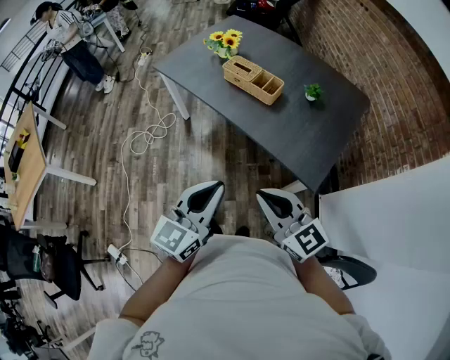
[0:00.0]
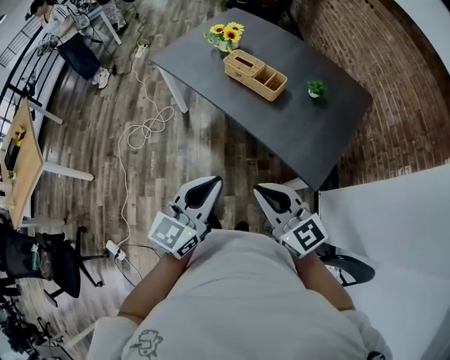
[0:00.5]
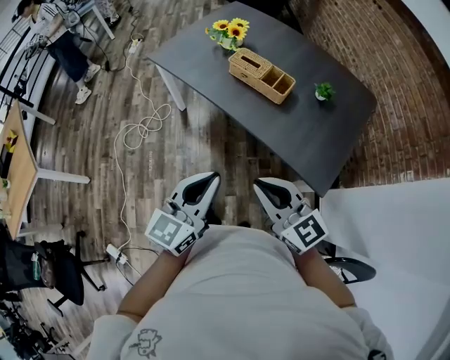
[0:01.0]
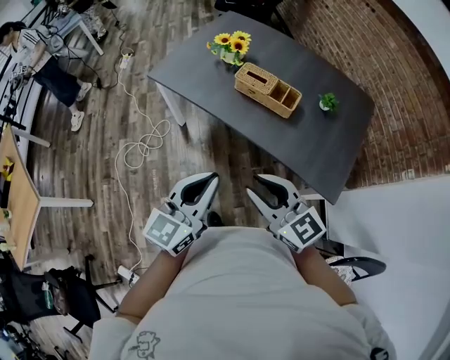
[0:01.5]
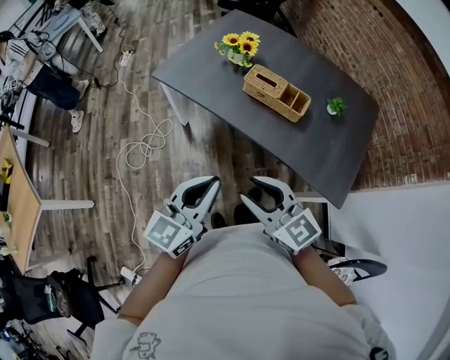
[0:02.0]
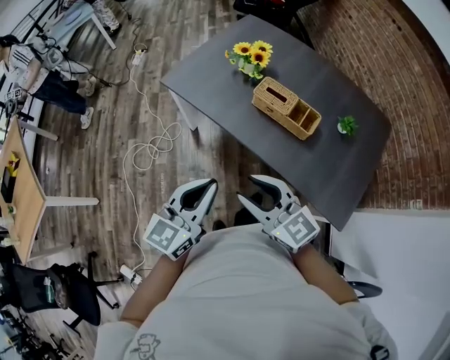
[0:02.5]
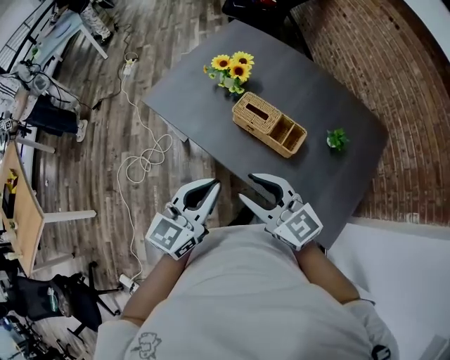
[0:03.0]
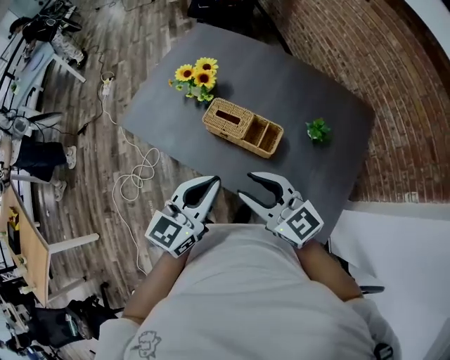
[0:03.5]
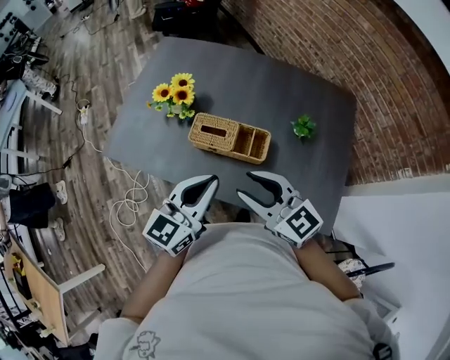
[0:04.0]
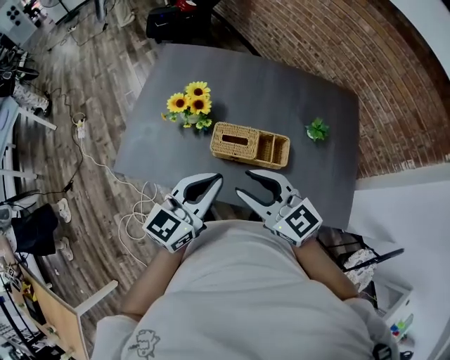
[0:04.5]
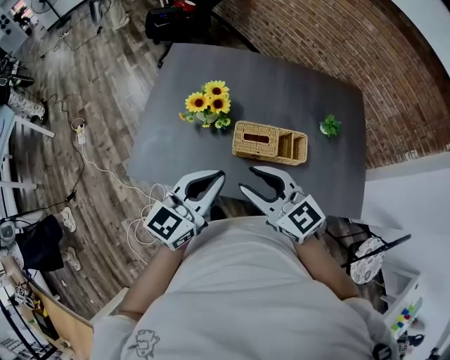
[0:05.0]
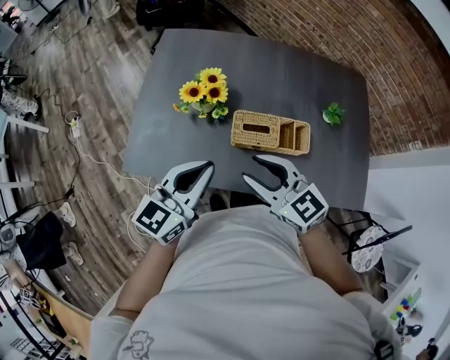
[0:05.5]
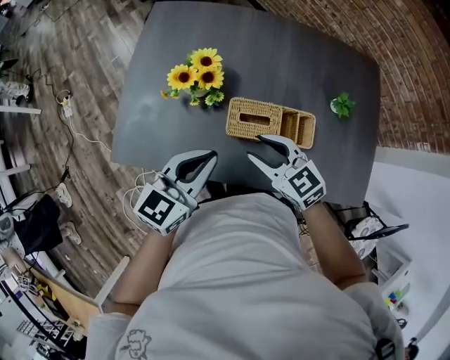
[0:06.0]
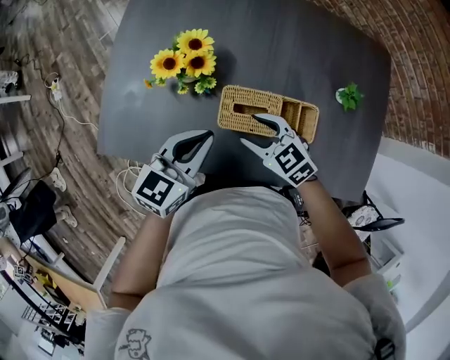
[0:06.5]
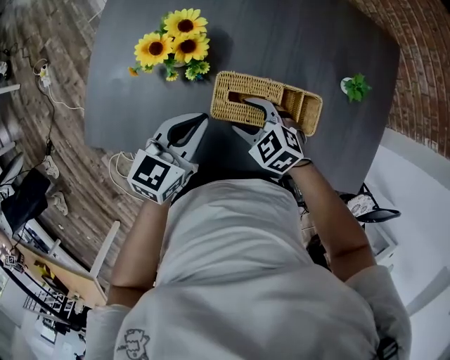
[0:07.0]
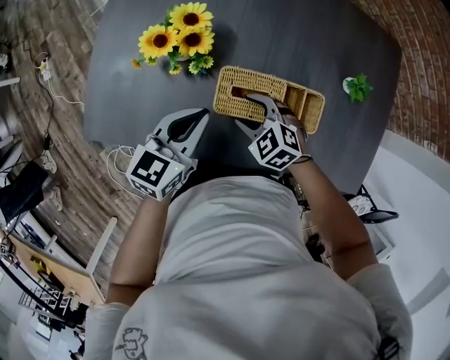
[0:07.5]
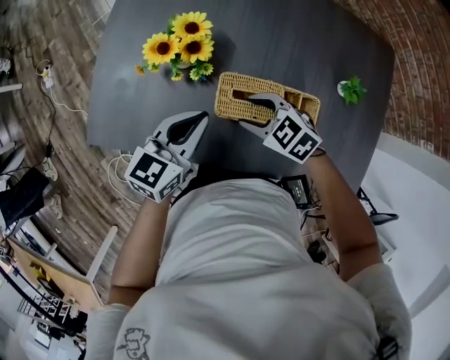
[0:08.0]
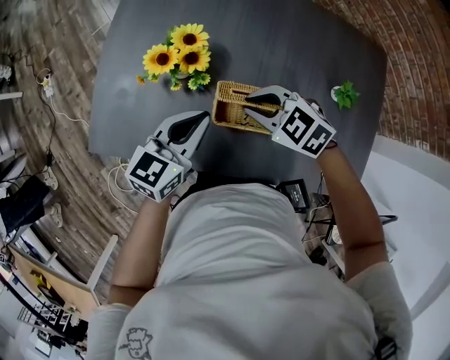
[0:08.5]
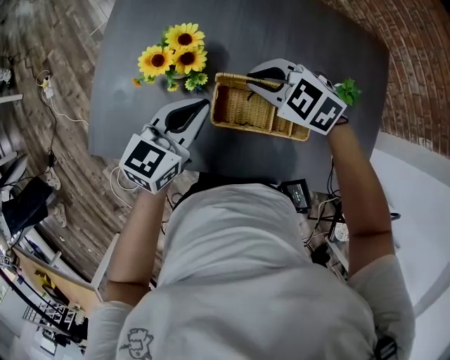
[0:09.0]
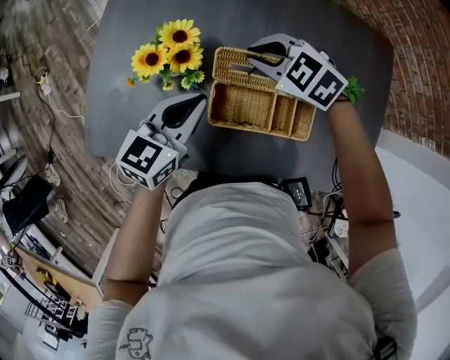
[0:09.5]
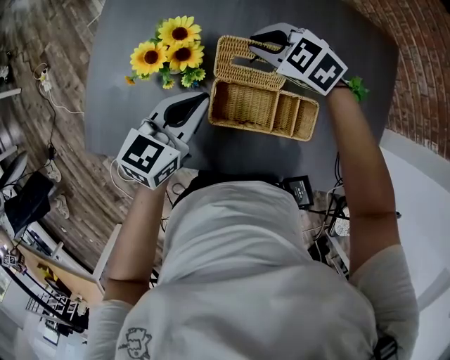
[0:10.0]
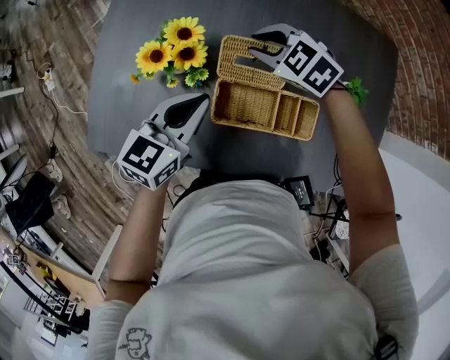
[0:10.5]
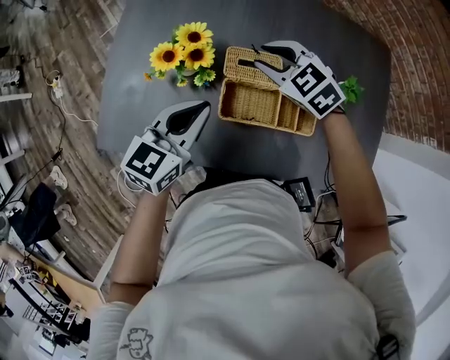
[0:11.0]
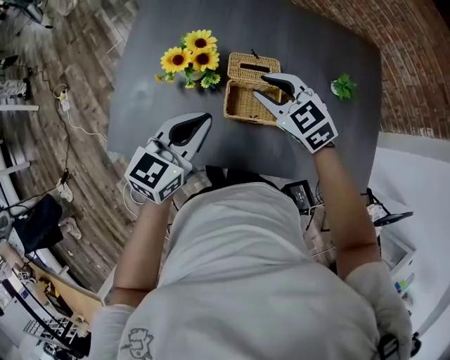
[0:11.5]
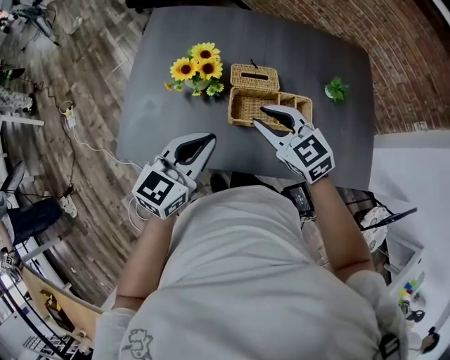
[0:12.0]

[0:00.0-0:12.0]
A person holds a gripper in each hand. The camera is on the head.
0:00.0 to 0:02.0: The right gripper travels to the left and forward by some 30 cm, and opens; the left gripper is displaced forward and to the left by about 25 cm.
0:02.0 to 0:04.0: The grippers both shift forward and to the right by approximately 30 cm.
0:04.0 to 0:06.0: The left gripper moves to the left, forward and downward, approximately 20 cm. The right gripper goes some 25 cm forward, to the left and downward, and rotates roughly 20 degrees.
0:06.0 to 0:08.0: The right gripper heads downward, covering about 10 cm, and swivels some 30 degrees, while the left gripper shifts roughly 10 cm downward and forward.
0:08.0 to 0:10.0: The left gripper heads forward, covering some 5 cm, while the right gripper shifts some 20 cm forward, and closes up.
0:10.0 to 0:12.0: The two grippers go some 20 cm backward and upward. The right gripper swivels approximately 30 degrees.

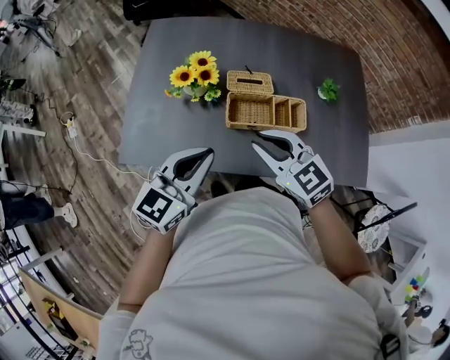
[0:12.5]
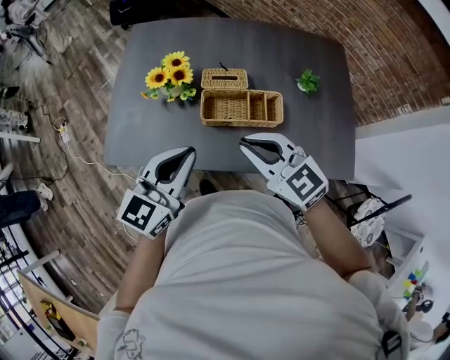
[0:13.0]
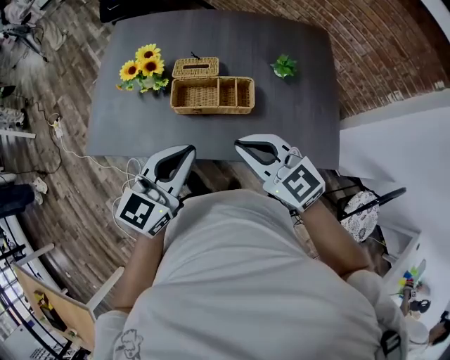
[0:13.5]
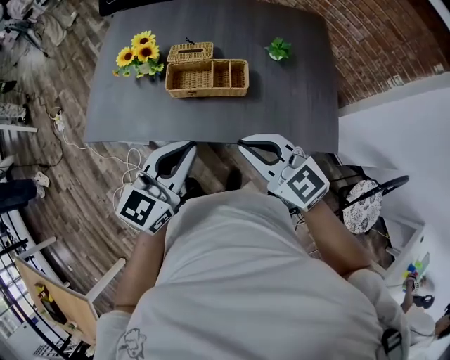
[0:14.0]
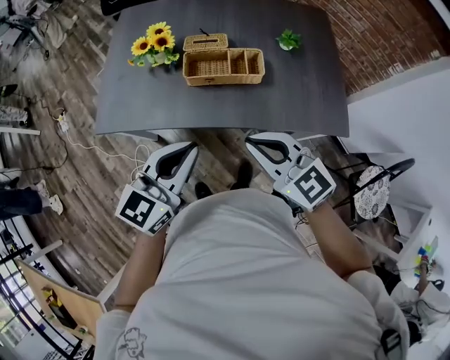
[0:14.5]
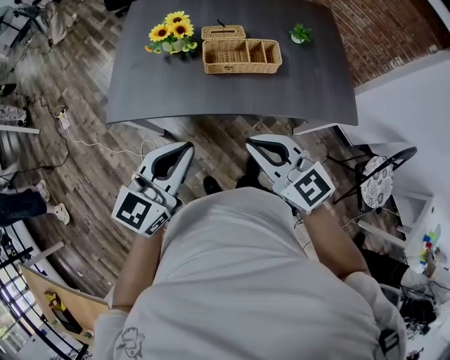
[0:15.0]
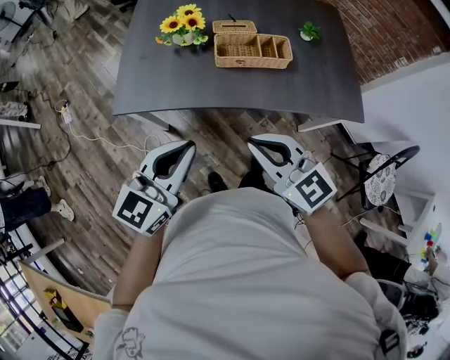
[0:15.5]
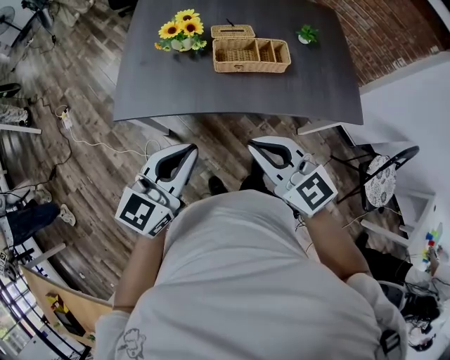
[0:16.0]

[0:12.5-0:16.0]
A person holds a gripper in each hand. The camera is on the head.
0:12.5 to 0:14.5: The two grippers go some 20 cm backward and to the right.
0:14.5 to 0:16.0: The left gripper heads to the left, covering about 15 cm. The right gripper goes about 15 cm to the left and backward.

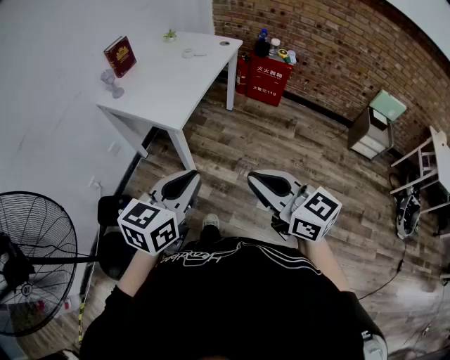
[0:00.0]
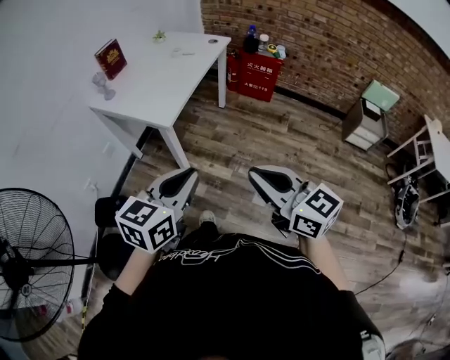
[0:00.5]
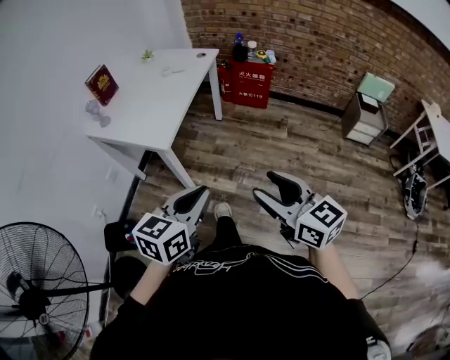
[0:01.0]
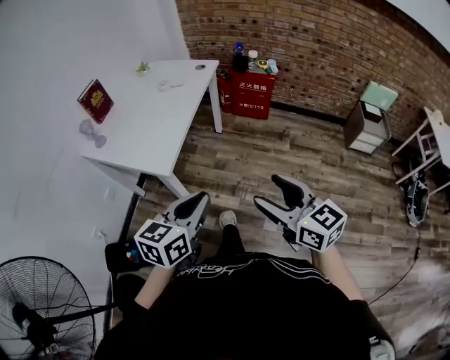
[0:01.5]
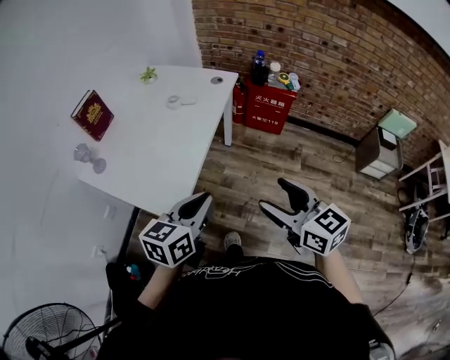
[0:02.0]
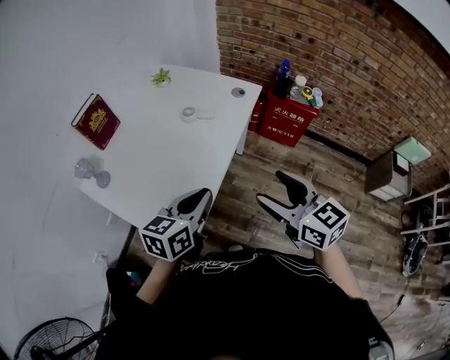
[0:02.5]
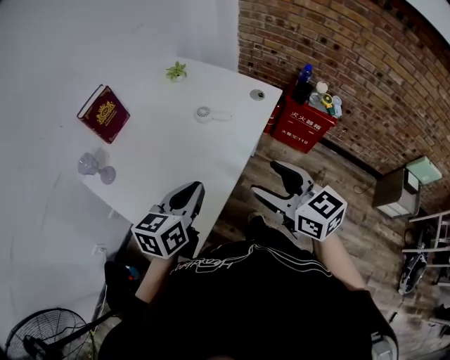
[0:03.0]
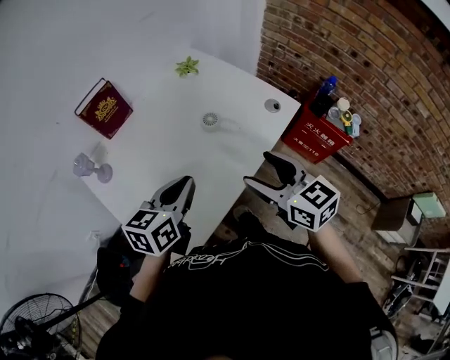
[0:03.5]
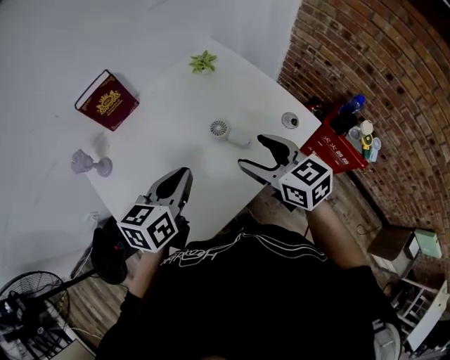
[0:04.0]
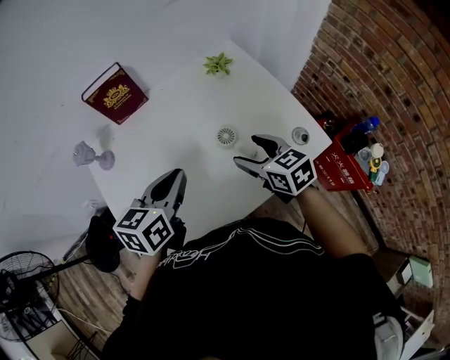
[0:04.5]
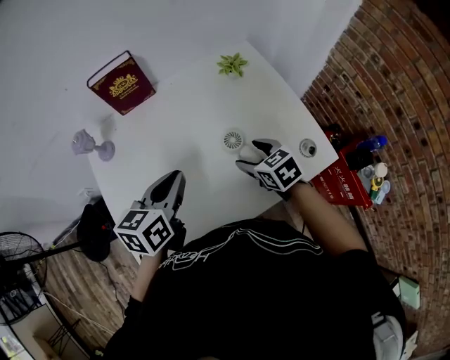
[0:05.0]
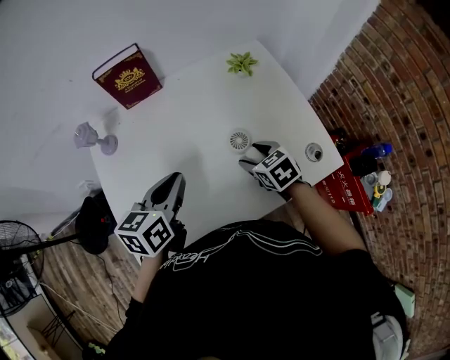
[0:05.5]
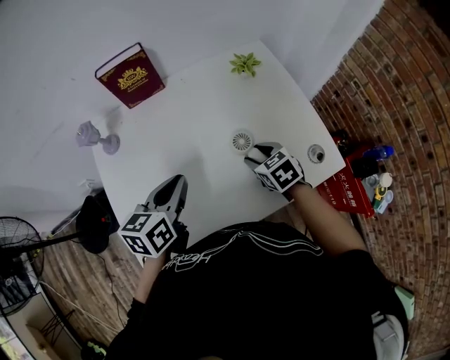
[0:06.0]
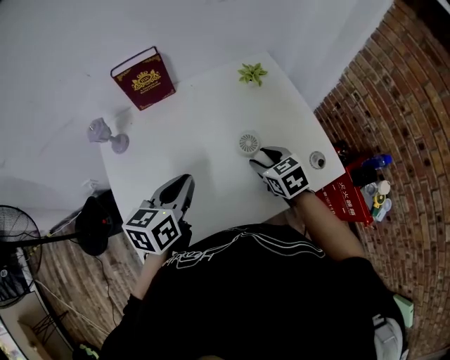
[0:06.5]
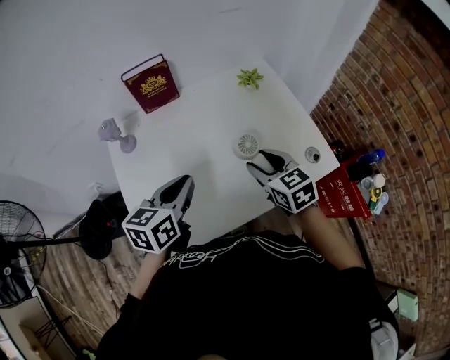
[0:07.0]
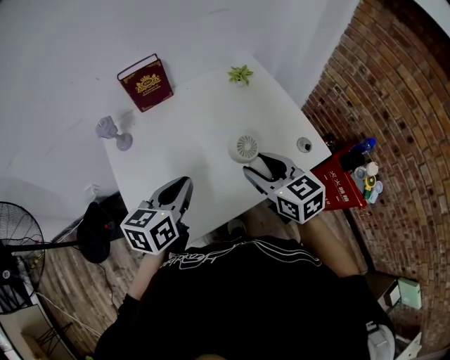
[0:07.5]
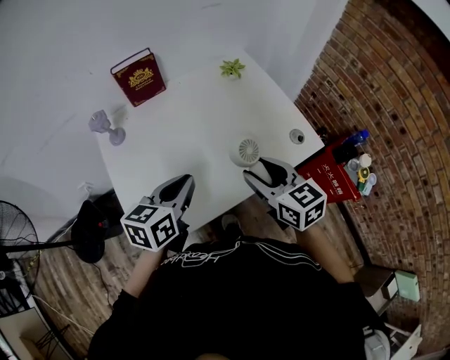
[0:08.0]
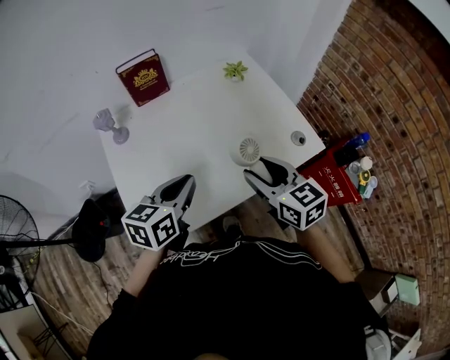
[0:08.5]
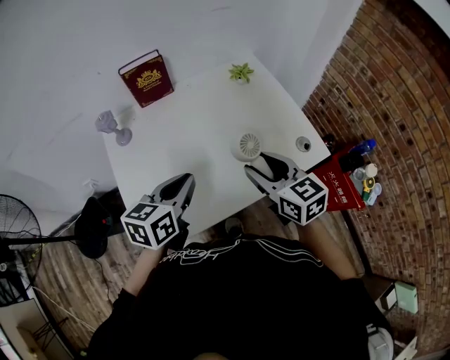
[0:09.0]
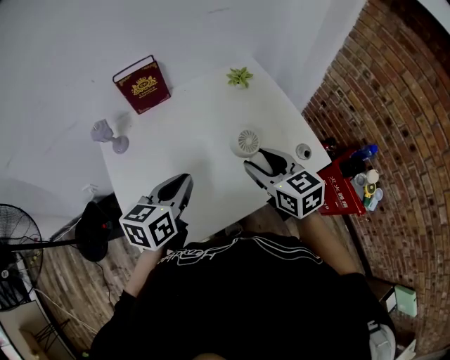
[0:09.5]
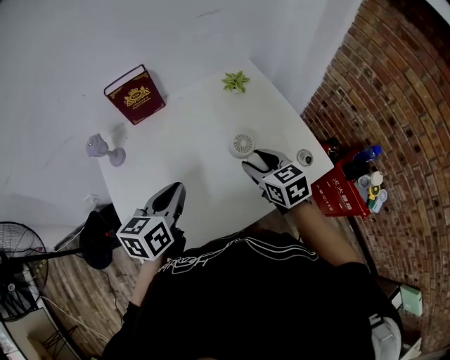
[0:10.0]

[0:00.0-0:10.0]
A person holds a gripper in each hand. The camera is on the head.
0:00.0 to 0:02.0: Both grippers move forward, about 30 cm. The right gripper opens.
0:02.0 to 0:04.0: The right gripper changes place by approximately 50 cm, and turns by approximately 40 degrees, while the left gripper changes place by some 40 cm, and turns by about 40 degrees.
0:04.0 to 0:06.0: The left gripper goes about 5 cm downward and to the left, and rotates about 20 degrees; the right gripper shifts some 20 cm downward and forward, turns by some 30 degrees, and closes its fingers.
0:06.0 to 0:08.0: The left gripper shifts approximately 10 cm backward and upward. Meanwhile the right gripper travels upward and backward by some 25 cm, and changes its angle by roughly 30 degrees.
0:08.0 to 0:10.0: The right gripper is displaced forward and downward by about 15 cm. Meanwhile the left gripper heads forward, covering roughly 5 cm.

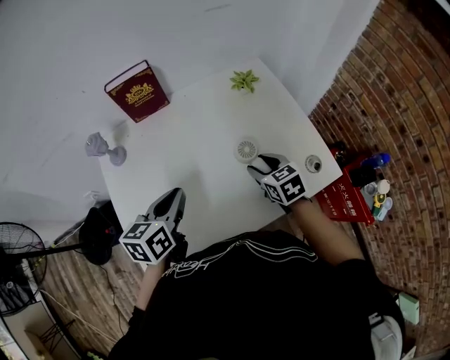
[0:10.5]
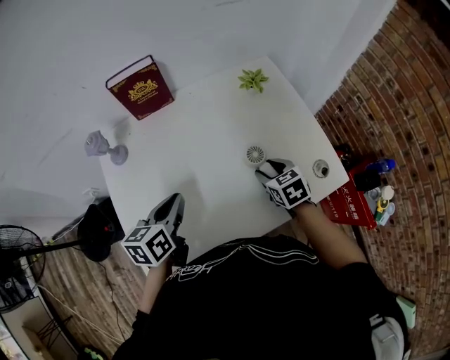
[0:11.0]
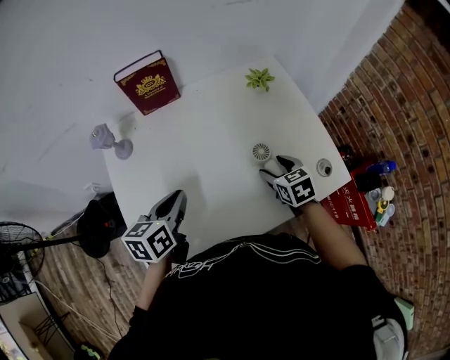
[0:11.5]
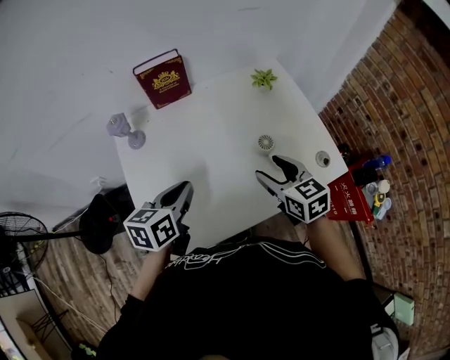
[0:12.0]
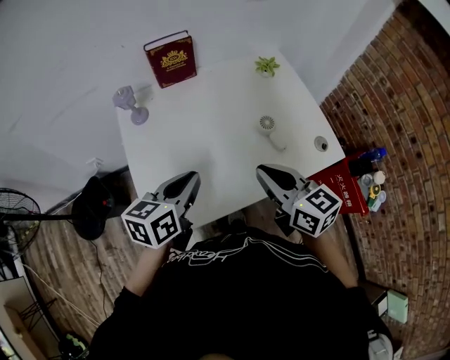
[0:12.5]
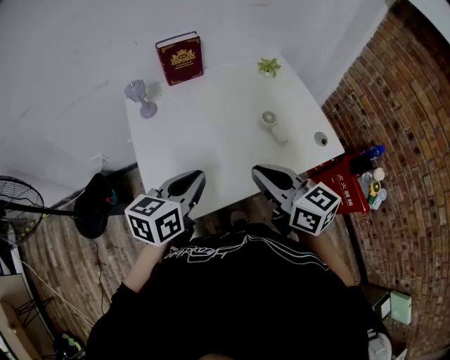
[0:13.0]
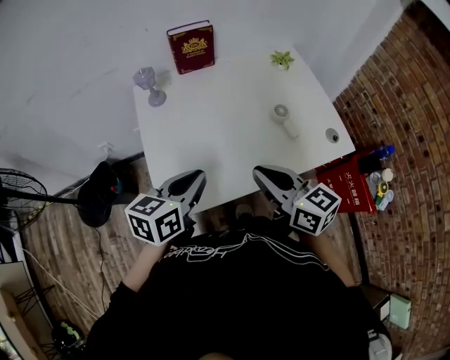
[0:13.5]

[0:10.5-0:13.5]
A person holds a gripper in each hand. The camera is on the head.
0:10.5 to 0:12.0: The right gripper is displaced upward and backward by some 10 cm, while the left gripper shifts by approximately 5 cm.
0:12.0 to 0:13.5: The left gripper moves backward, roughly 10 cm. The right gripper is displaced backward, to the left and upward by roughly 20 cm, changes its angle by about 20 degrees, and closes up.
